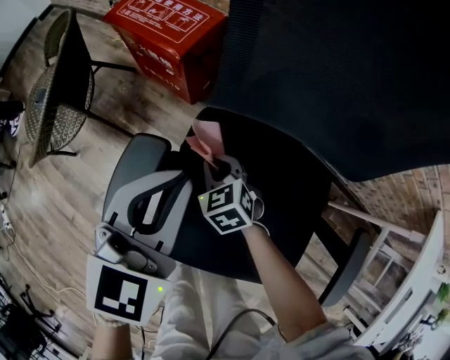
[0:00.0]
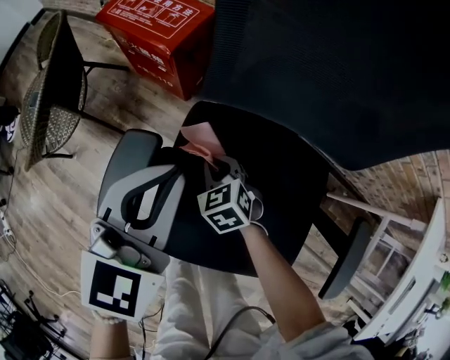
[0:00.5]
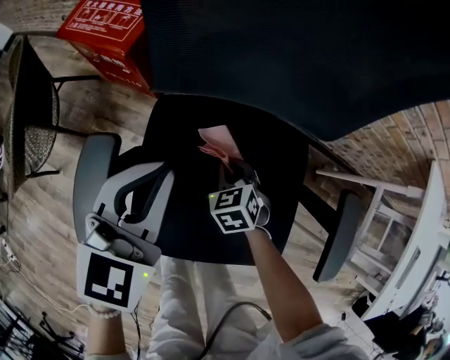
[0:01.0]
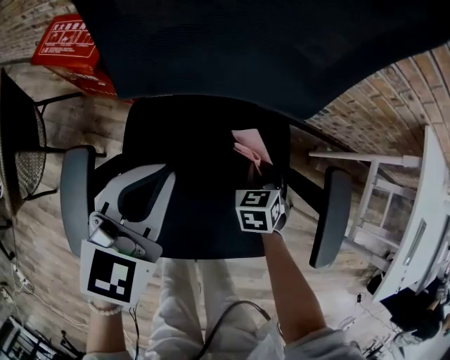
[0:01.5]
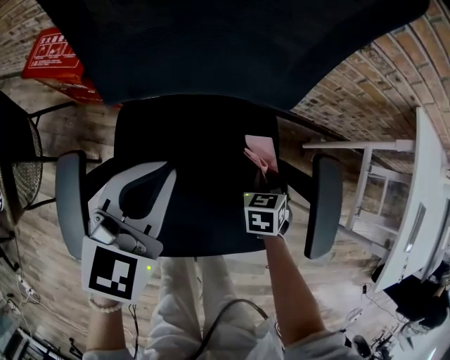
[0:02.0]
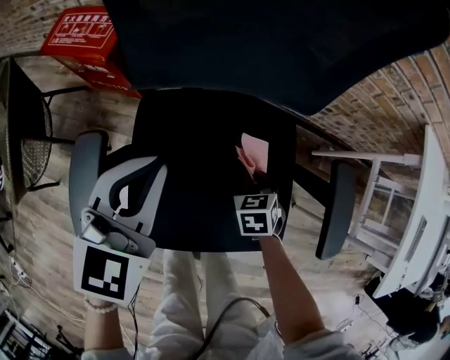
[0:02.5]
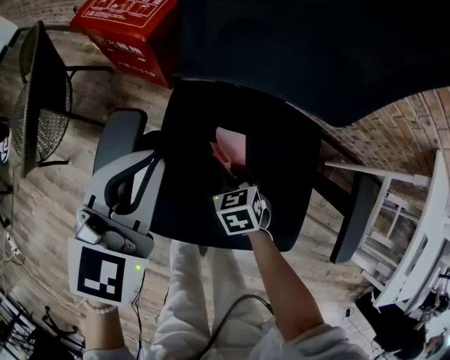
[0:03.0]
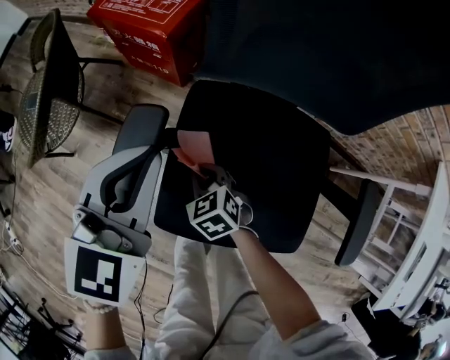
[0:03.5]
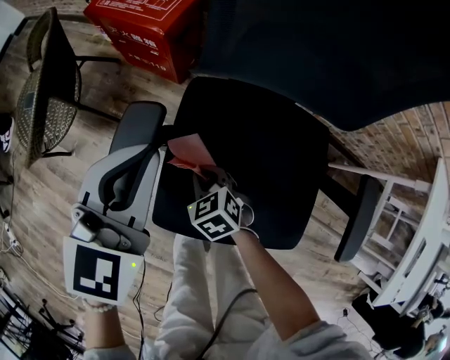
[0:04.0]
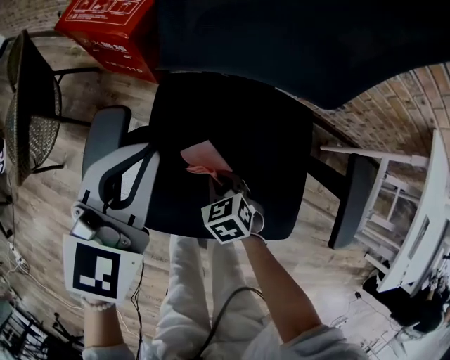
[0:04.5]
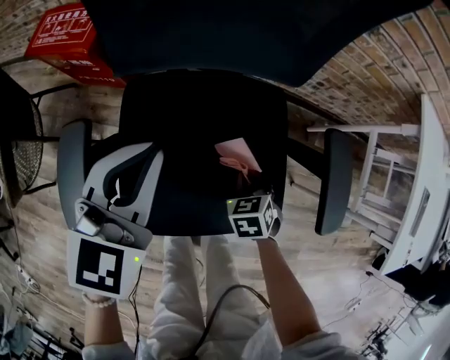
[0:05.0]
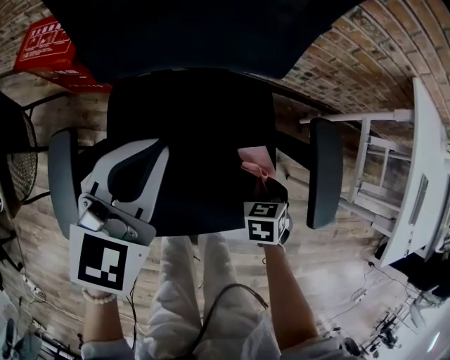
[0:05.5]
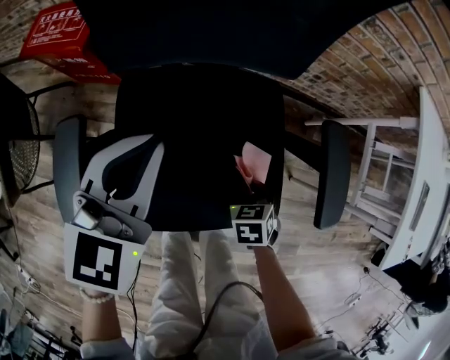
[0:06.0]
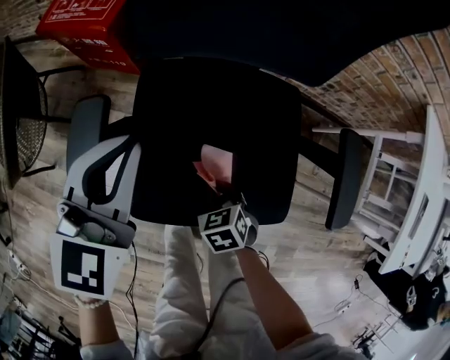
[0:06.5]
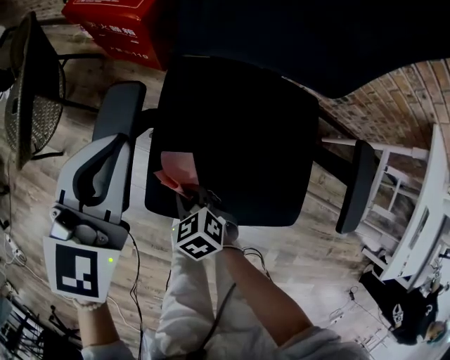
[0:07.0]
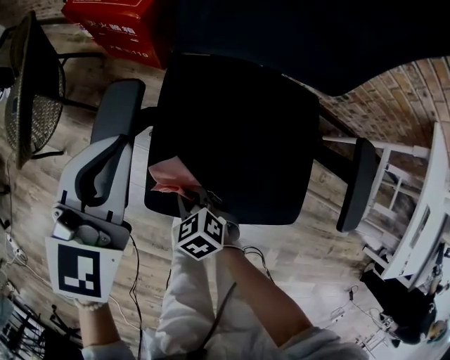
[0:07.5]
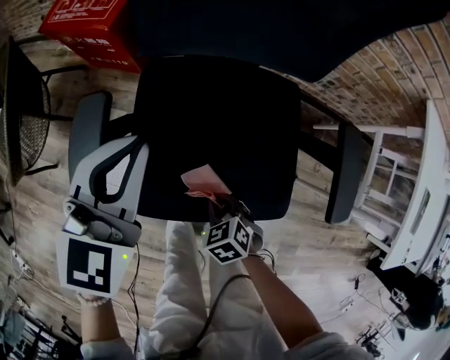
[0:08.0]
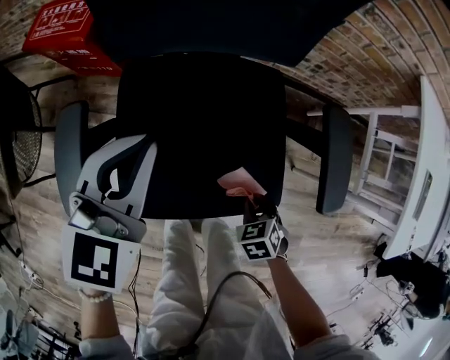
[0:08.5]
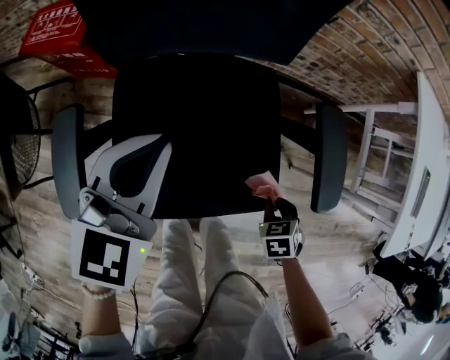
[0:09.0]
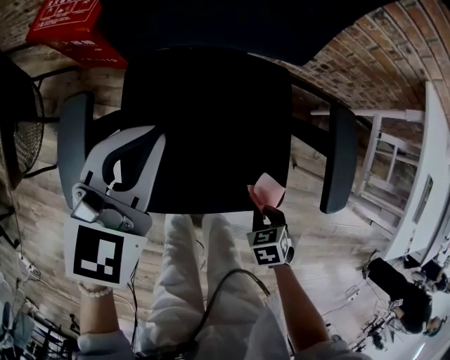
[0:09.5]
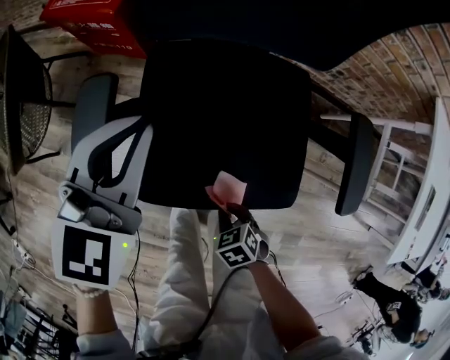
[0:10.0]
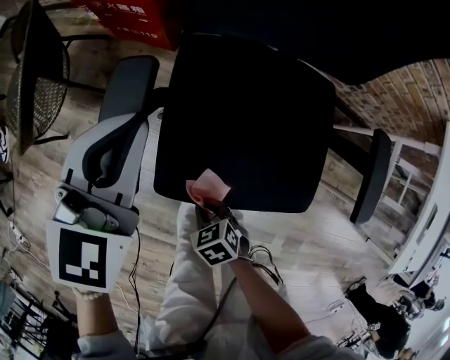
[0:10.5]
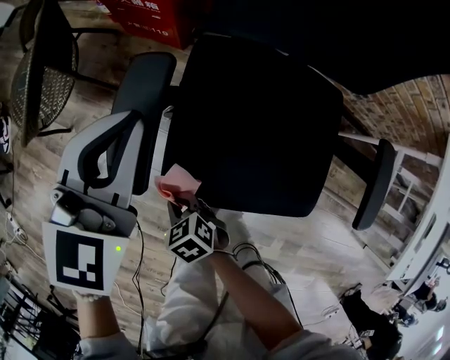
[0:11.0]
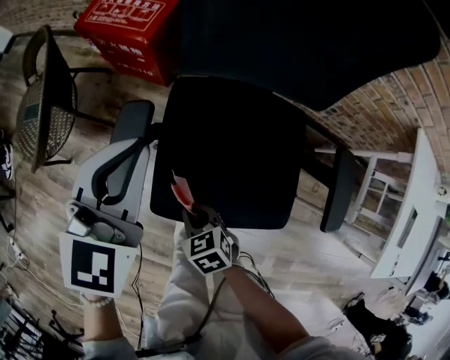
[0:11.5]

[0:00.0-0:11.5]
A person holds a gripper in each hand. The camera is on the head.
0:00.0 to 0:02.0: The left gripper ends up some 15 cm from where it was, and turns by some 20 degrees. The right gripper ends up about 40 cm from where it was, and rotates about 50 degrees.
0:02.0 to 0:04.0: The left gripper ends up some 20 cm from where it was, and swivels some 20 degrees. Meanwhile the right gripper shifts by about 35 cm, and swivels approximately 50 degrees.
0:04.0 to 0:06.0: The left gripper shifts by about 15 cm. The right gripper moves roughly 30 cm, and changes its angle by about 40 degrees.
0:06.0 to 0:07.5: The right gripper moves about 30 cm, and rotates approximately 40 degrees; the left gripper moves roughly 15 cm.
0:07.5 to 0:09.5: The left gripper shifts by roughly 15 cm. Meanwhile the right gripper ends up some 30 cm from where it was, and rotates about 30 degrees.
0:09.5 to 0:11.5: The left gripper shifts by some 15 cm, while the right gripper ends up roughly 30 cm from where it was, and changes its angle by some 30 degrees.

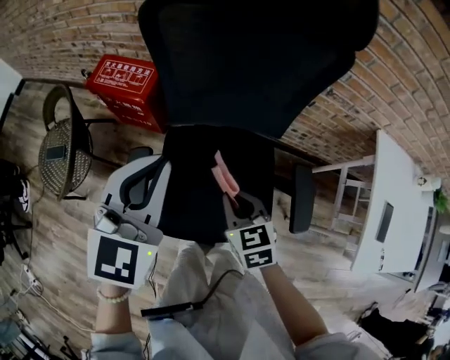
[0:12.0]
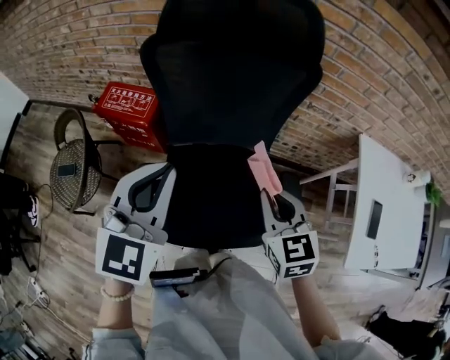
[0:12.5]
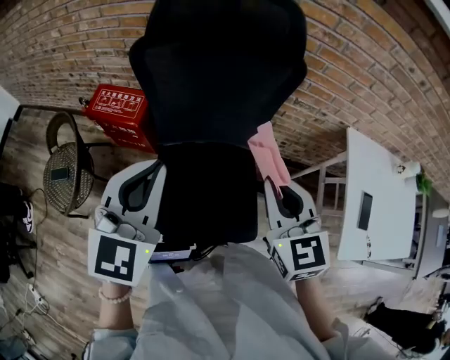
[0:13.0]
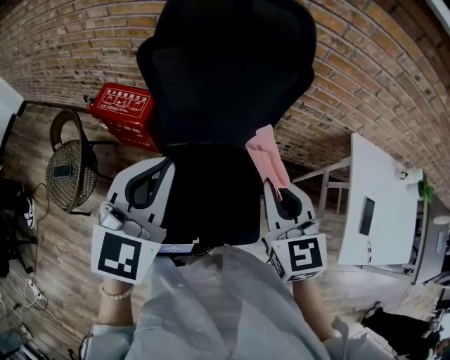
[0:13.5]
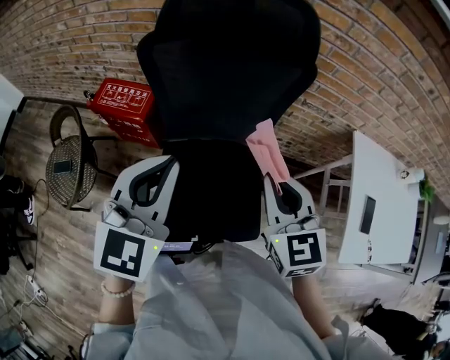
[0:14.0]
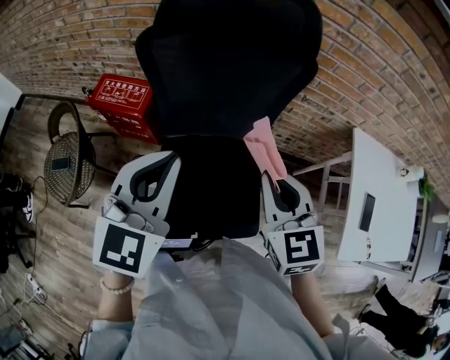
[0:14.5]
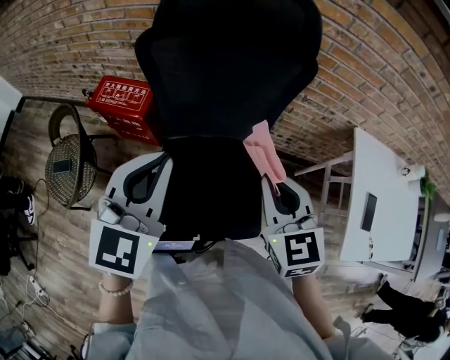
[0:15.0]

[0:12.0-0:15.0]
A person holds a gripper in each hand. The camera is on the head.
0:12.0 to 0:13.5: The right gripper heads upward, covering roughly 25 cm, and turns by some 30 degrees. Meanwhile the left gripper travels upward by about 10 cm.
0:13.5 to 0:15.0: The grippers stay close to where they were, moving slightly.

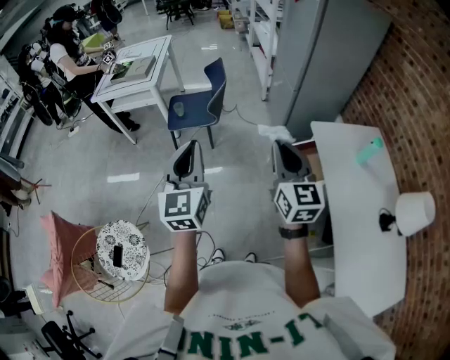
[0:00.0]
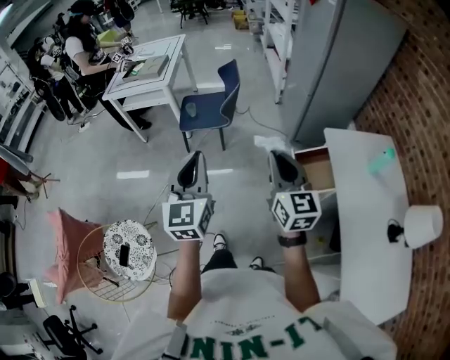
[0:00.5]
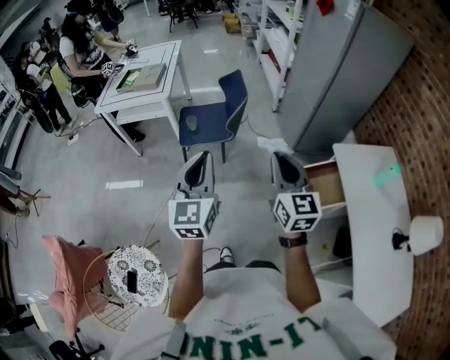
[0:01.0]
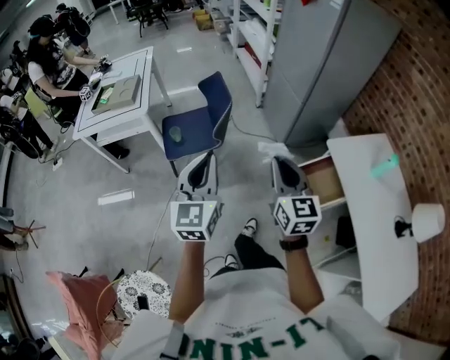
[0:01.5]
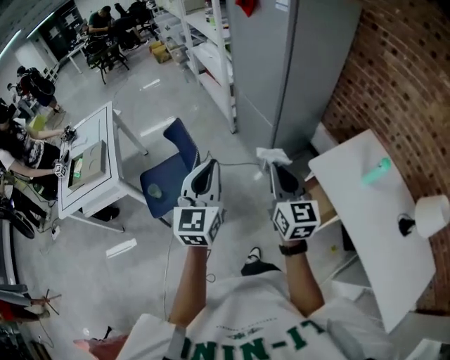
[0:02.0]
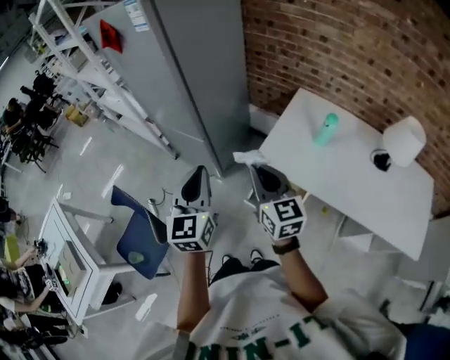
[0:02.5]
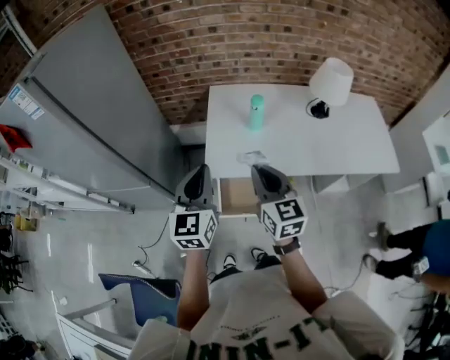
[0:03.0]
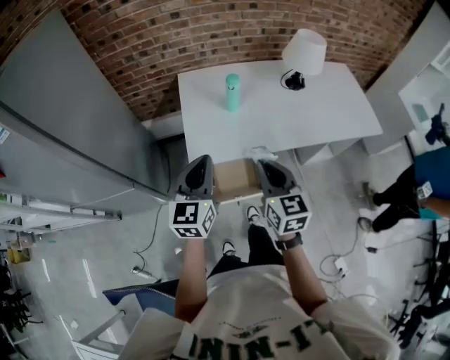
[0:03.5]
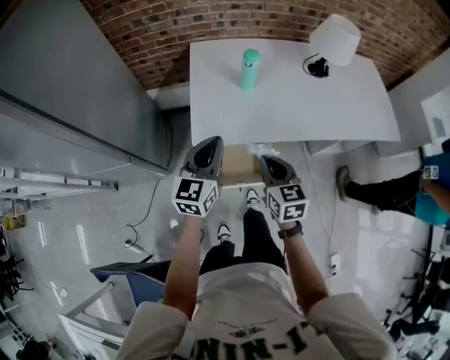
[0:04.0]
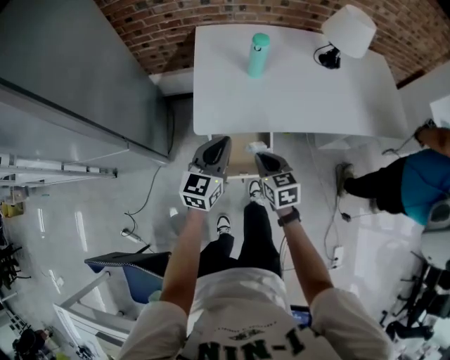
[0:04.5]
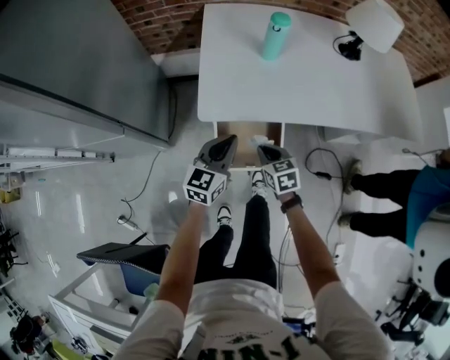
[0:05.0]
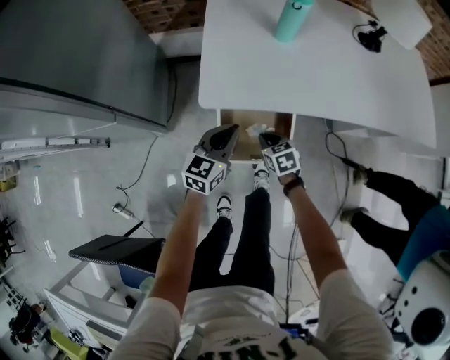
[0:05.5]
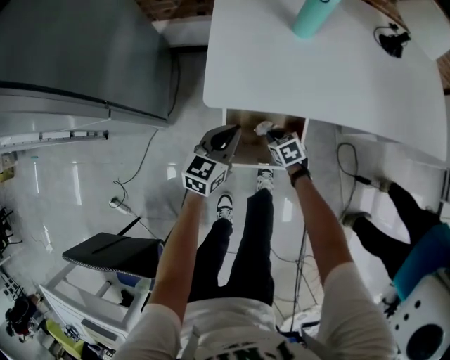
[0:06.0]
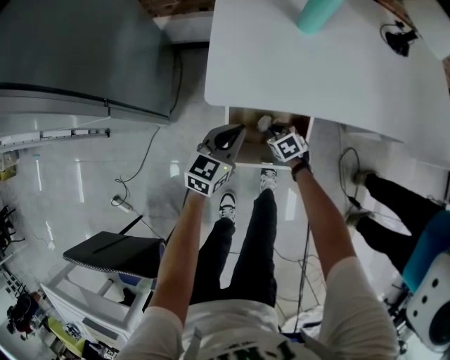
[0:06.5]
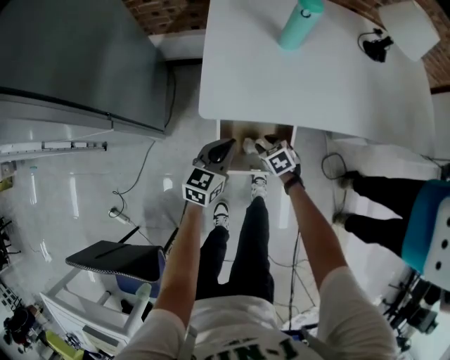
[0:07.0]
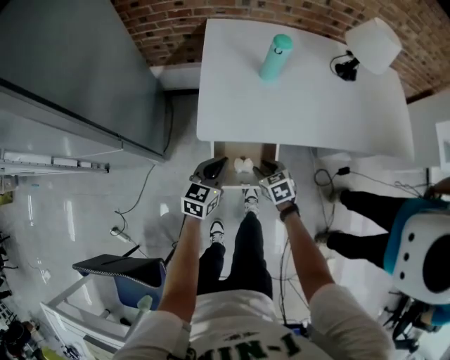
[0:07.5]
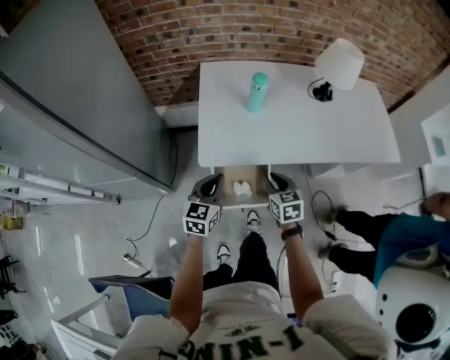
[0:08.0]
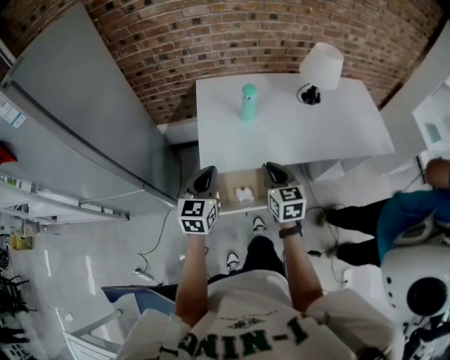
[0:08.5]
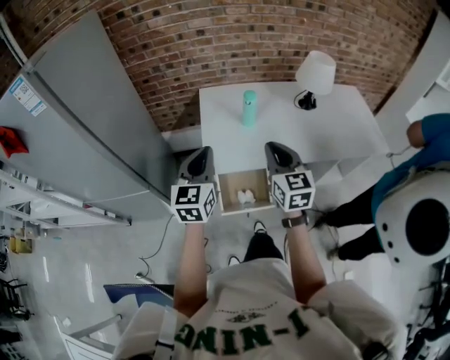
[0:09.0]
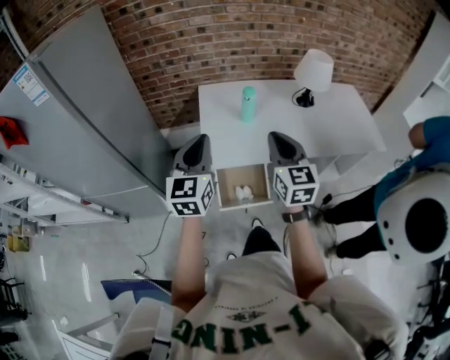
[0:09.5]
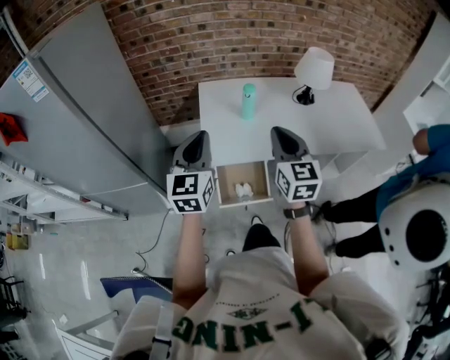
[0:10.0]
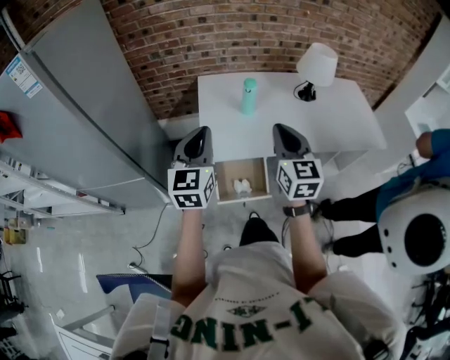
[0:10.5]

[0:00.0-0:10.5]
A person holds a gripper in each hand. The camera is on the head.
0:00.0 to 0:02.0: The right gripper changes place by about 35 cm, and changes its angle by approximately 20 degrees. The left gripper shifts by roughly 40 cm, and turns by roughly 30 degrees.
0:02.0 to 0:04.0: The left gripper changes place by roughly 50 cm, and swivels approximately 80 degrees, while the right gripper moves about 35 cm, and changes its angle by roughly 70 degrees.
0:04.0 to 0:06.5: The grippers both shift downward by roughly 40 cm. The right gripper angles its fingers downward, by approximately 40 degrees.
0:06.5 to 0:08.5: The right gripper heads upward, covering some 50 cm, tilts its fingers about 40 degrees upward, and opens, then closes once more, while the left gripper heads upward, covering some 30 cm.
0:08.5 to 0:10.5: The grippers both shift upward by about 15 cm.

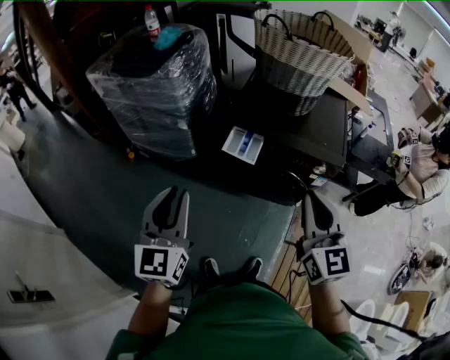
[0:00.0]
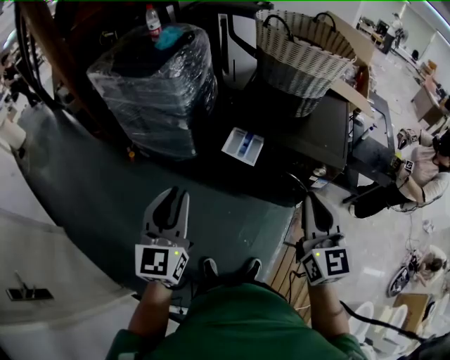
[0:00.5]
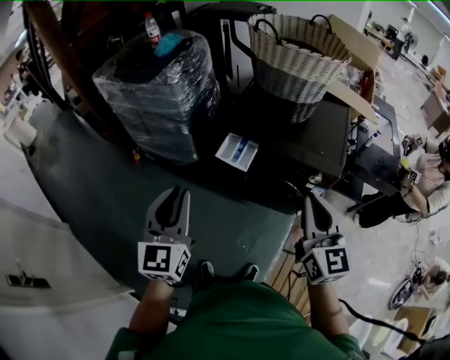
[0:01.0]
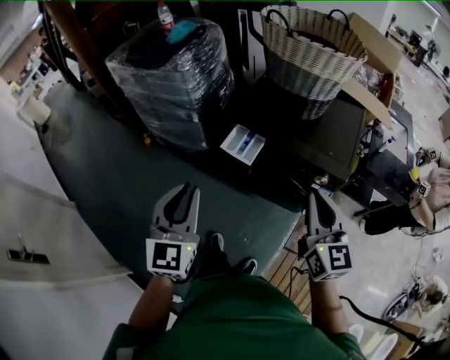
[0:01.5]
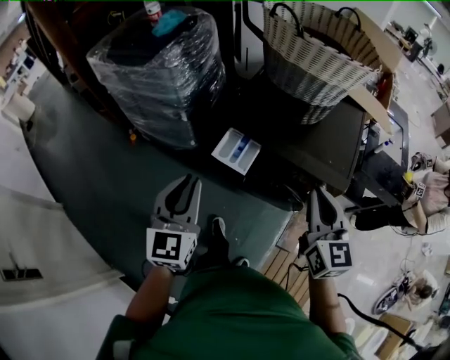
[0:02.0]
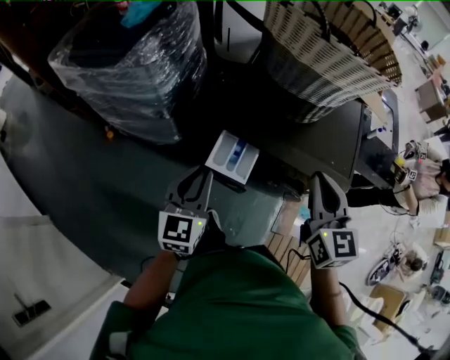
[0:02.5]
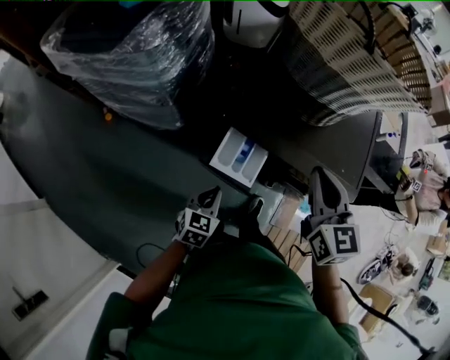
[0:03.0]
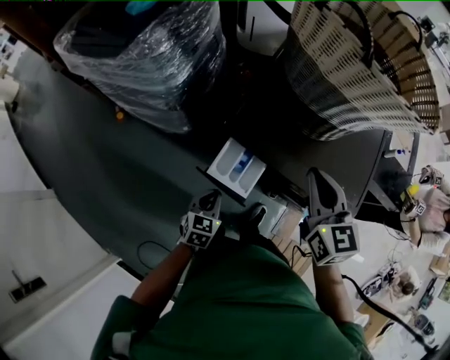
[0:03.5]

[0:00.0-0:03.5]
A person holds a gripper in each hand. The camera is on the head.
0:00.0 to 0:02.0: Both grippers travel together forward and to the right, about 15 cm.
0:02.0 to 0:03.5: The left gripper goes approximately 30 cm downward and forward, and points its fingers some 30 degrees further downward. The right gripper shifts about 20 cm forward.
